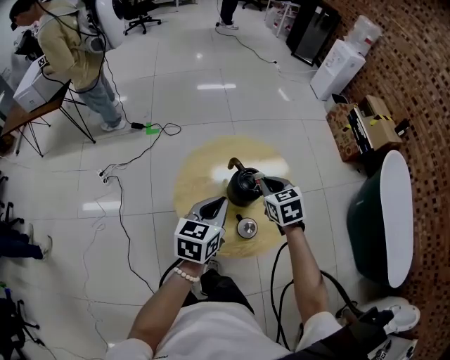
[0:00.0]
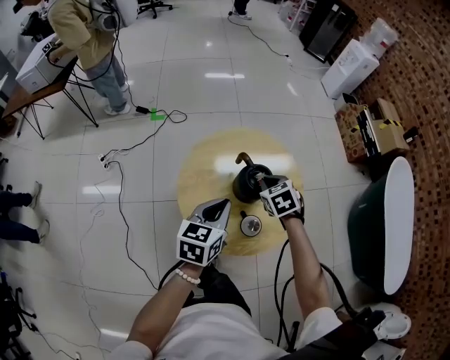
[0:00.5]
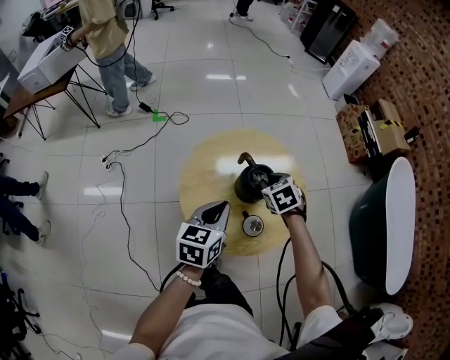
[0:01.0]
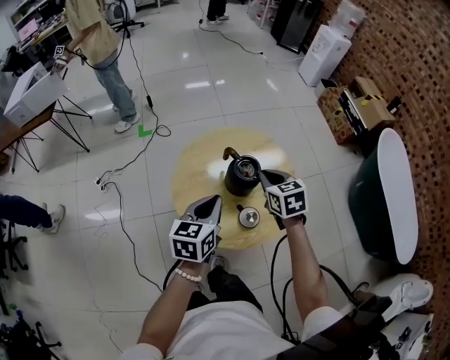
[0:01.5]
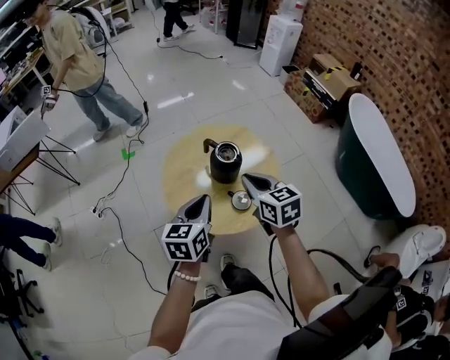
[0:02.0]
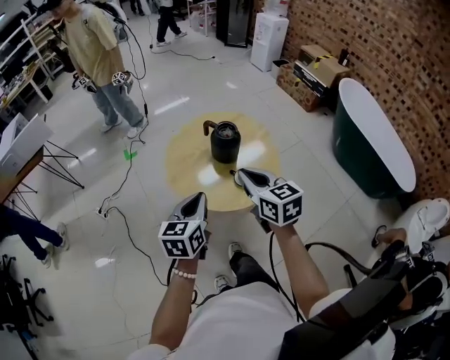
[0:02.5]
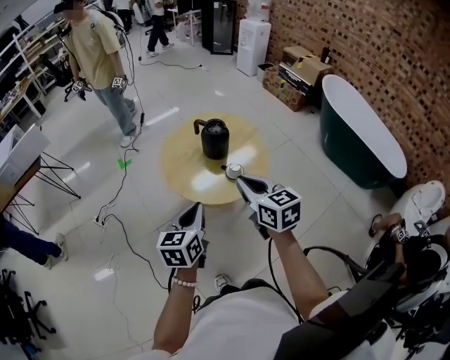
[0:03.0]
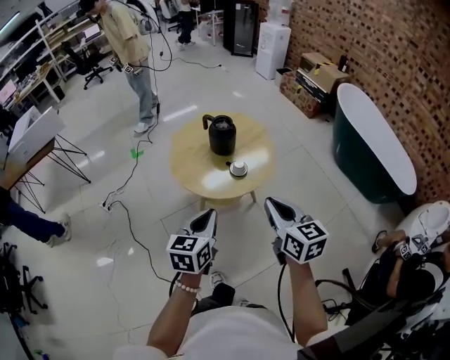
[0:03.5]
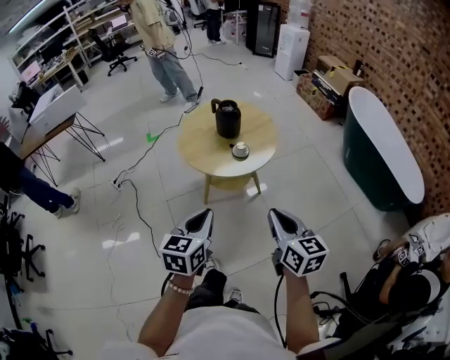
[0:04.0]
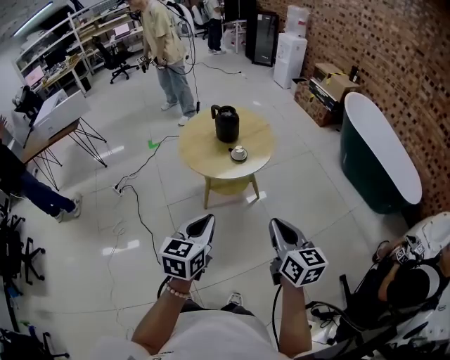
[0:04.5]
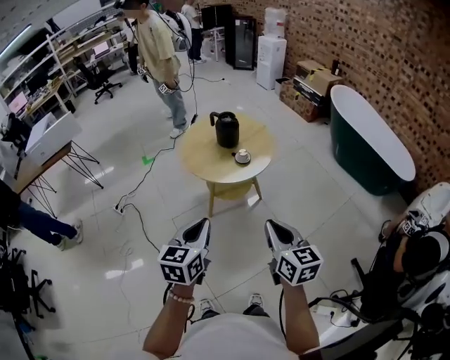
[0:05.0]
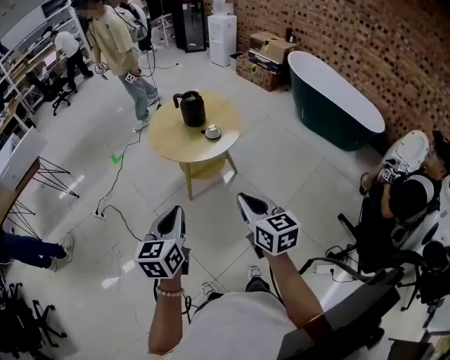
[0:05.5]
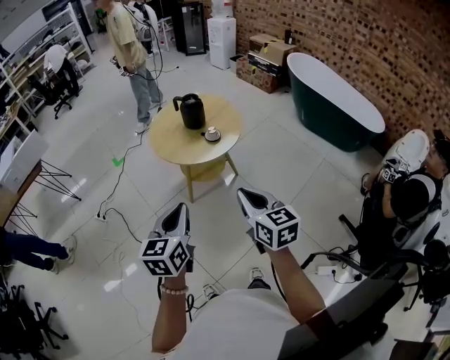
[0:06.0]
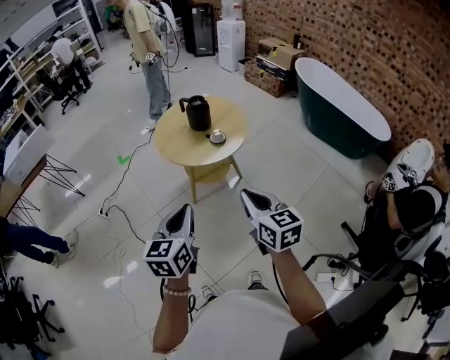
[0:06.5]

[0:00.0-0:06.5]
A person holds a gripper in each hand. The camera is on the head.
0:00.0 to 0:02.0: The right gripper moves backward and upward, approximately 15 cm, turns by roughly 20 degrees, and opens, then closes once more. The left gripper shifts approximately 10 cm backward.
0:02.0 to 0:04.5: The grippers both shift backward by approximately 40 cm. The right gripper turns by about 20 degrees.
0:04.5 to 0:06.5: Both grippers travel together to the left, about 10 cm.

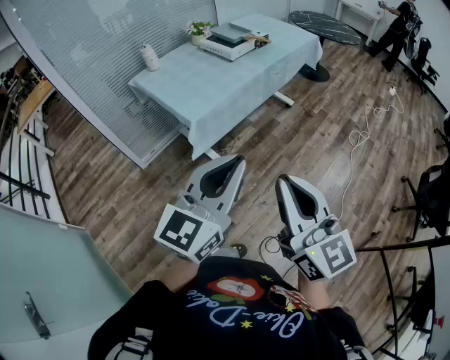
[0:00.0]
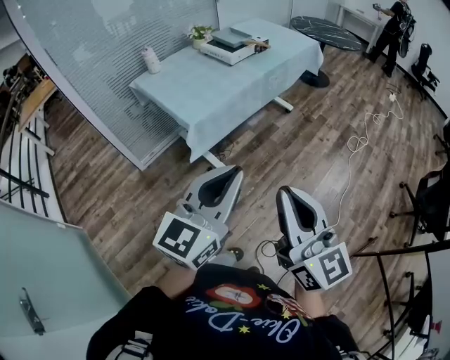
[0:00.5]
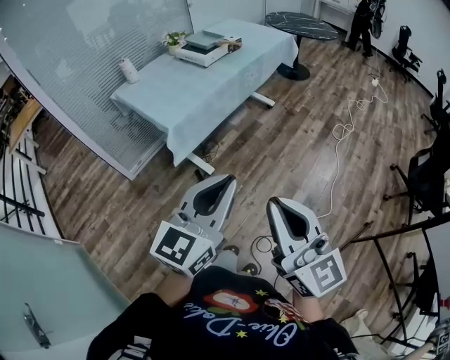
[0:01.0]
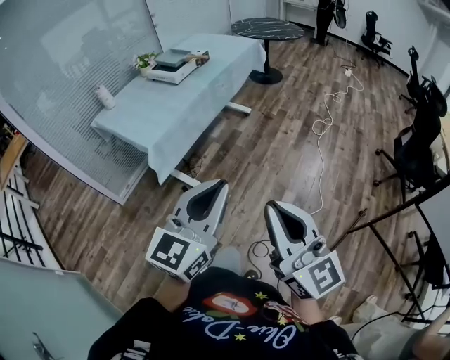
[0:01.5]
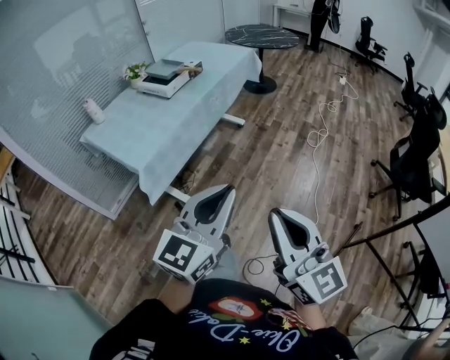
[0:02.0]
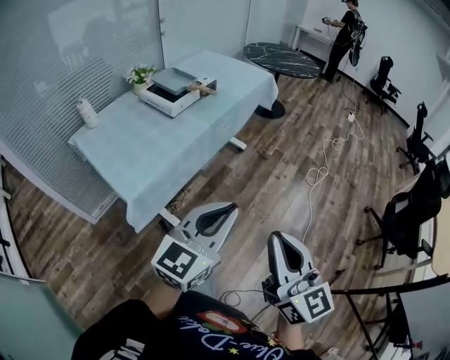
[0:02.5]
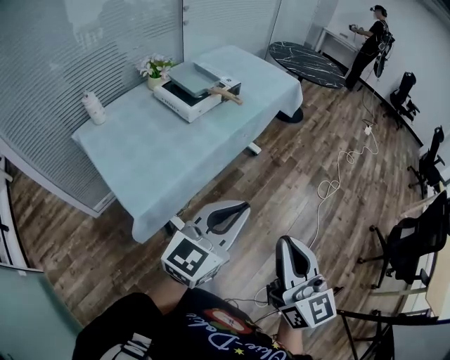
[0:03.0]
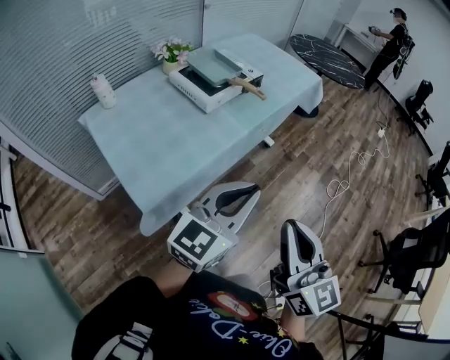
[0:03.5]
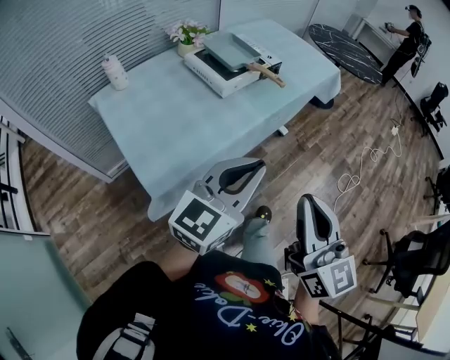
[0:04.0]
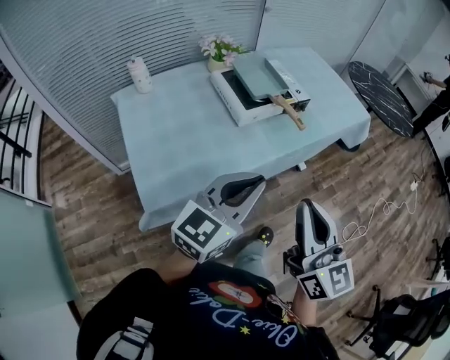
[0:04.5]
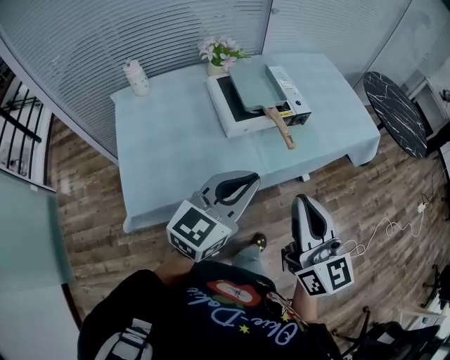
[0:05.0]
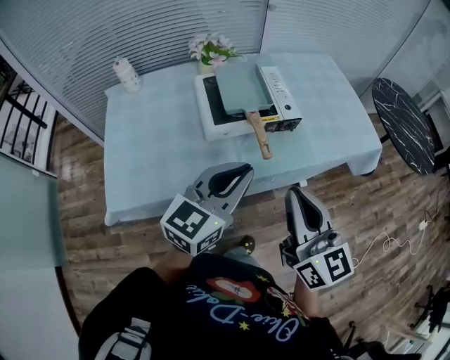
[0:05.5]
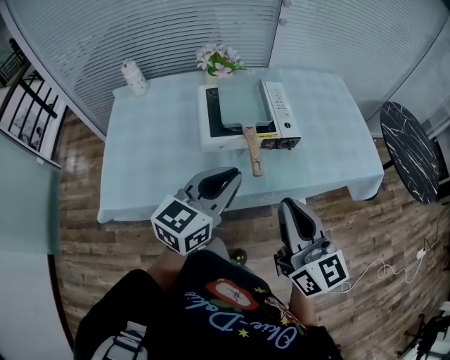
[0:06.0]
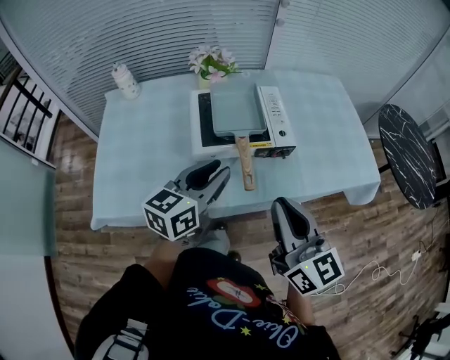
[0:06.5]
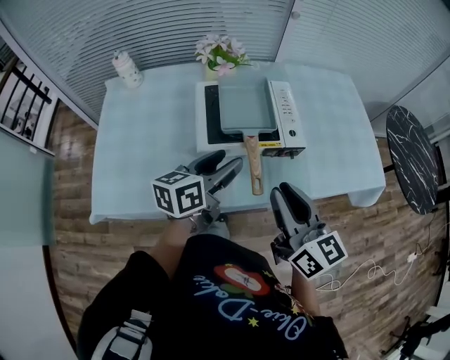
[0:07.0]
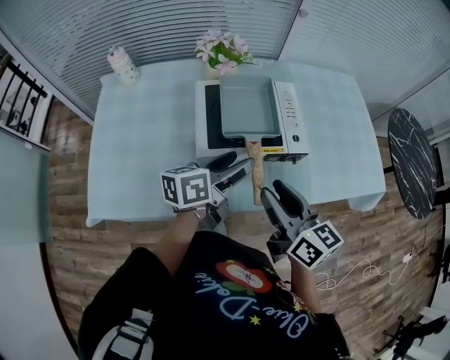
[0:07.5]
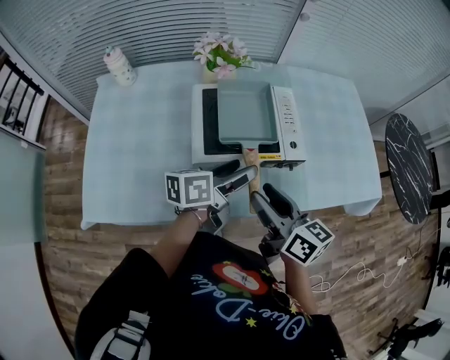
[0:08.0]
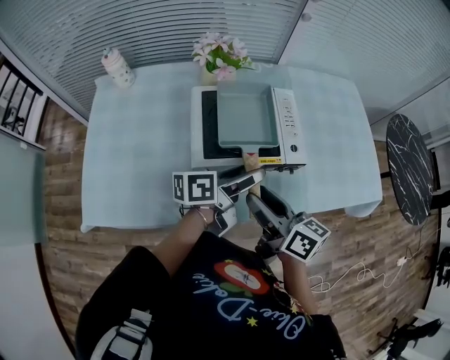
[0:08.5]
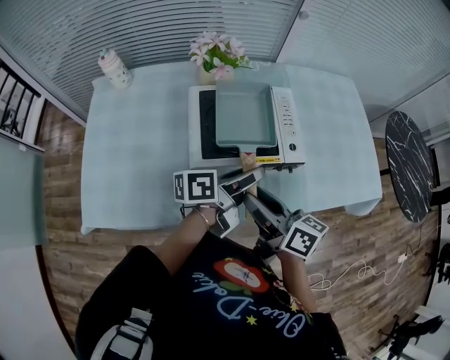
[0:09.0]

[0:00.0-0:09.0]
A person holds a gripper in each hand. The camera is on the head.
0:00.0 to 0:02.0: Both grippers move to the right, some 15 cm.
0:02.0 to 0:04.5: The pair of grippers is taken forward, approximately 50 cm. The left gripper changes its angle by approximately 20 degrees. Meanwhile the right gripper turns by approximately 20 degrees.
0:04.5 to 0:07.0: The right gripper changes place by approximately 30 cm, and swivels about 30 degrees, while the left gripper ends up roughly 30 cm from where it was, swivels approximately 40 degrees, and opens its fingers.
0:07.0 to 0:09.0: The left gripper moves to the right, roughly 5 cm, and rotates roughly 30 degrees. The right gripper moves downward, forward and to the left, approximately 10 cm, turns by about 30 degrees, and opens its fingers.

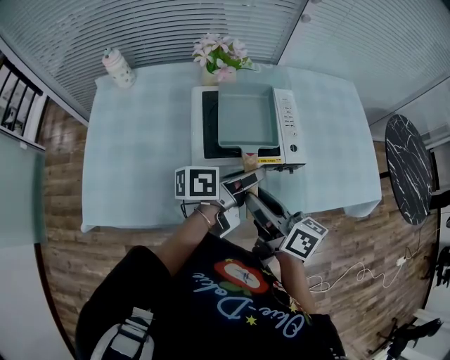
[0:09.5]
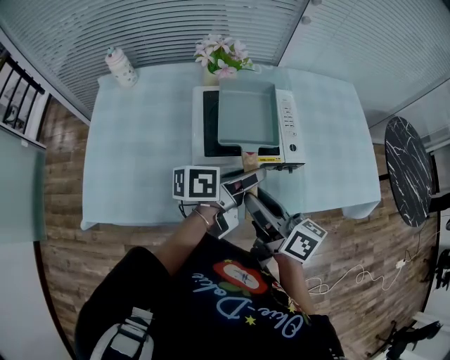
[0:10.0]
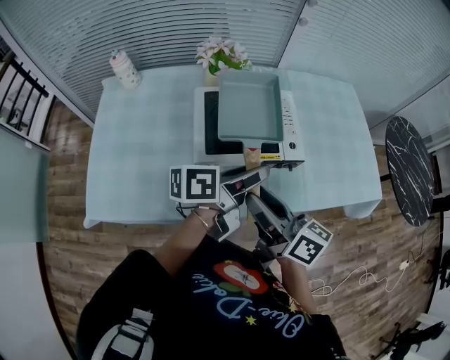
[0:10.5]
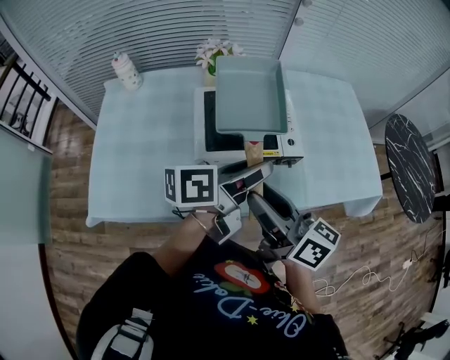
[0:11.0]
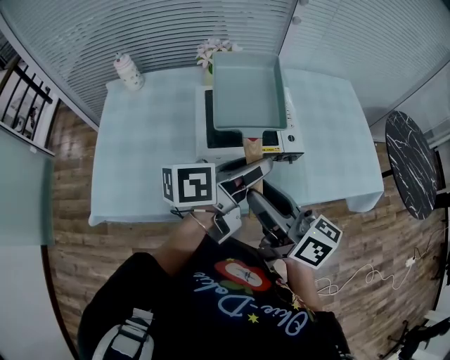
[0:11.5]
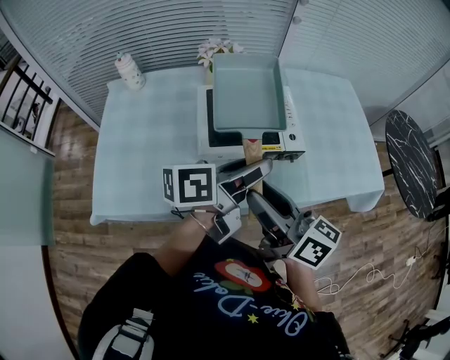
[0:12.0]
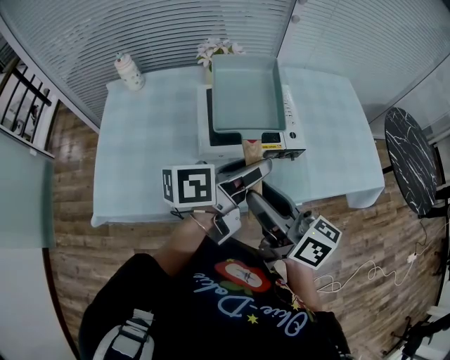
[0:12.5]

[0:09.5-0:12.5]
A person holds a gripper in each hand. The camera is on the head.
0:09.5 to 0:11.0: Both grippers travel together upward, roughly 10 cm.
0:11.0 to 0:12.5: The grippers make only small movements.

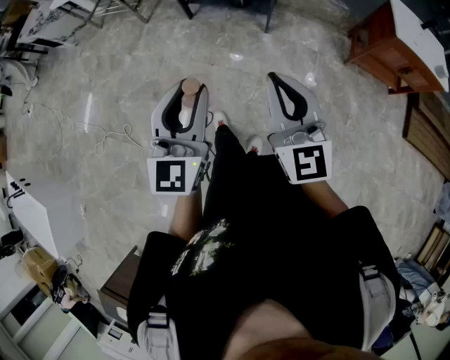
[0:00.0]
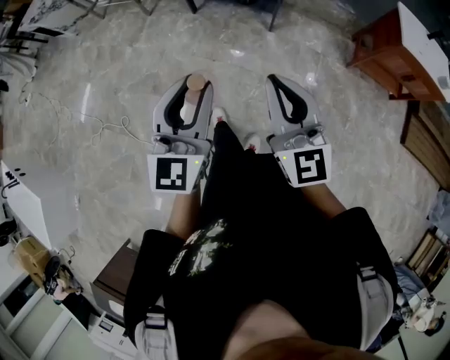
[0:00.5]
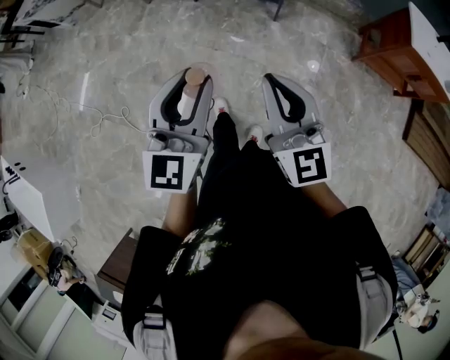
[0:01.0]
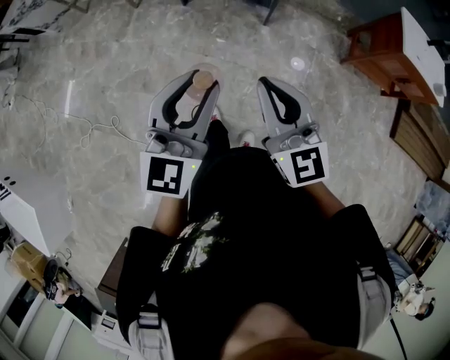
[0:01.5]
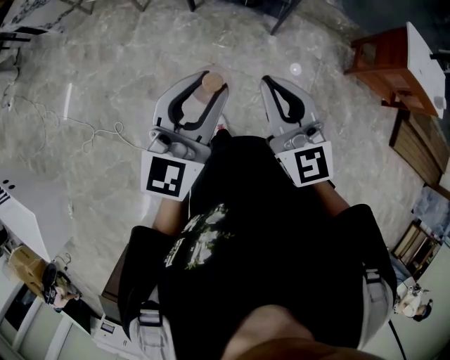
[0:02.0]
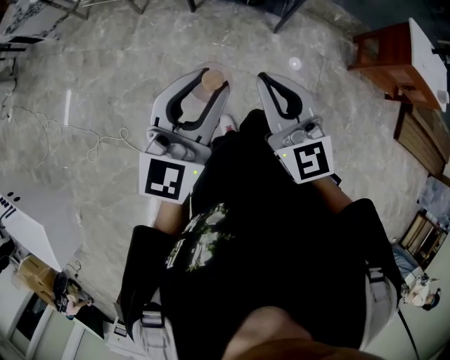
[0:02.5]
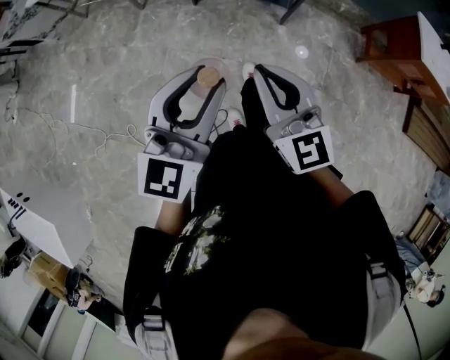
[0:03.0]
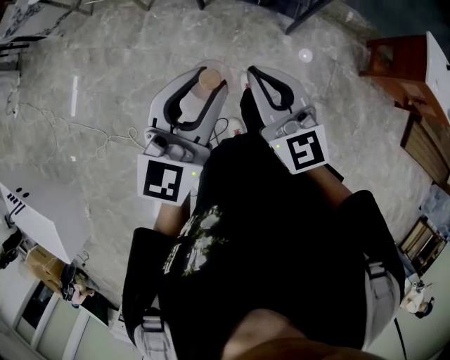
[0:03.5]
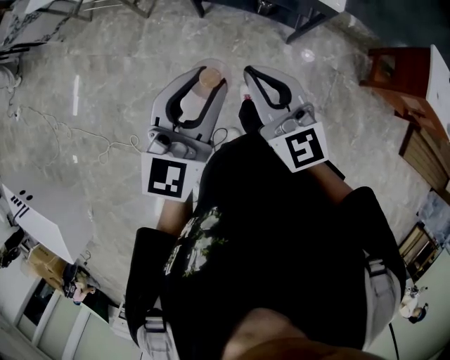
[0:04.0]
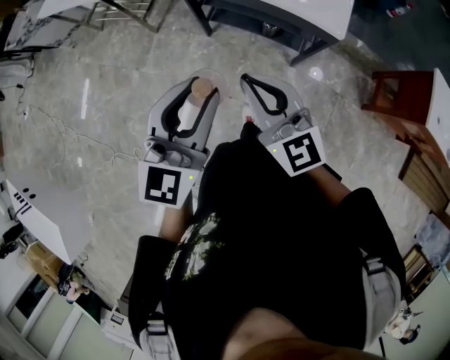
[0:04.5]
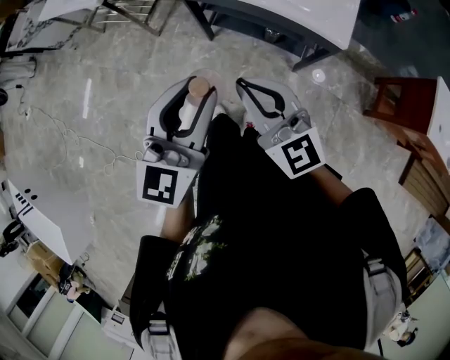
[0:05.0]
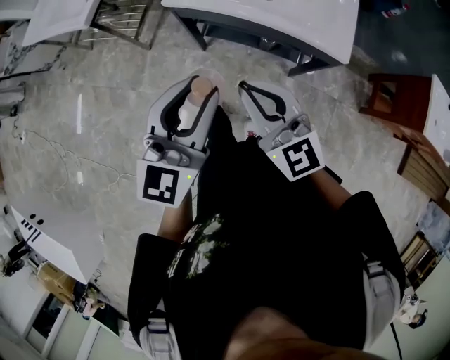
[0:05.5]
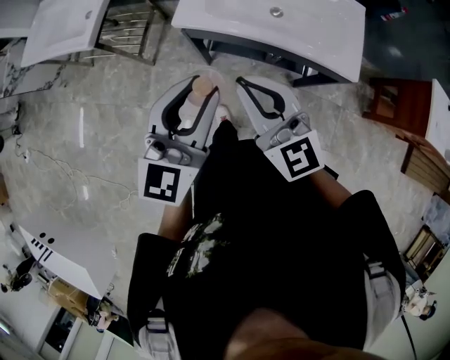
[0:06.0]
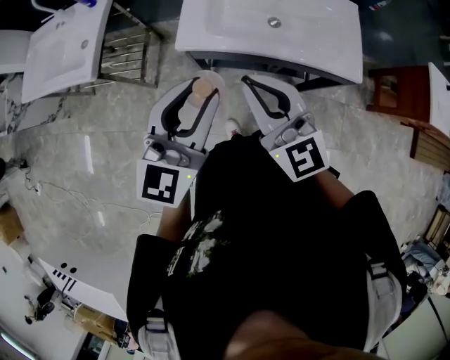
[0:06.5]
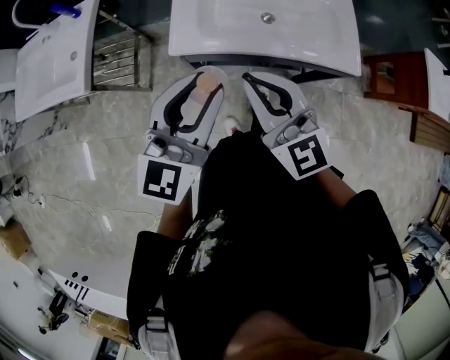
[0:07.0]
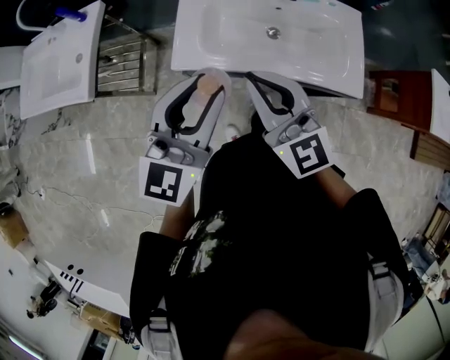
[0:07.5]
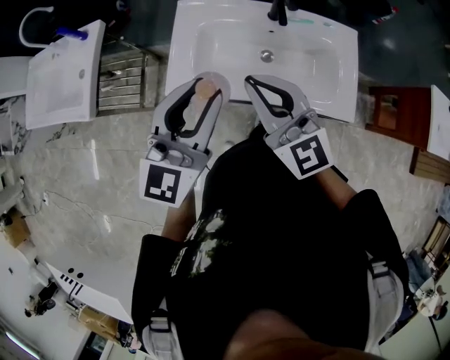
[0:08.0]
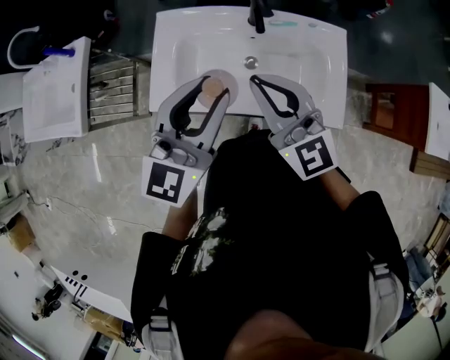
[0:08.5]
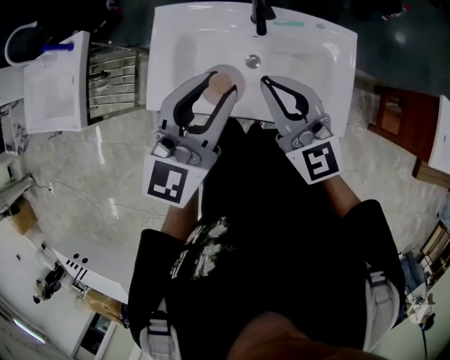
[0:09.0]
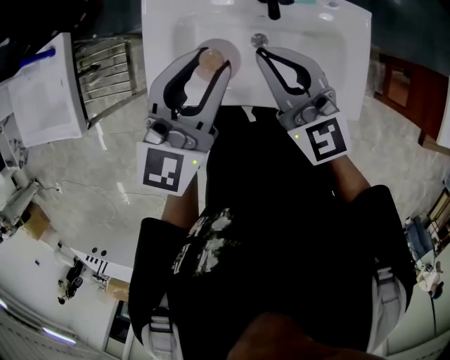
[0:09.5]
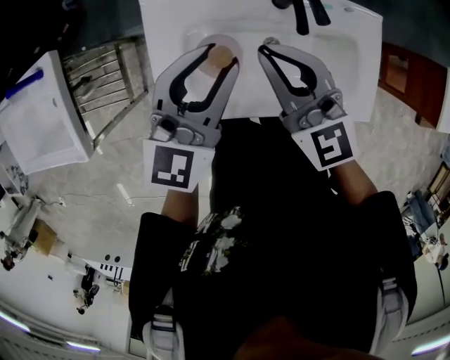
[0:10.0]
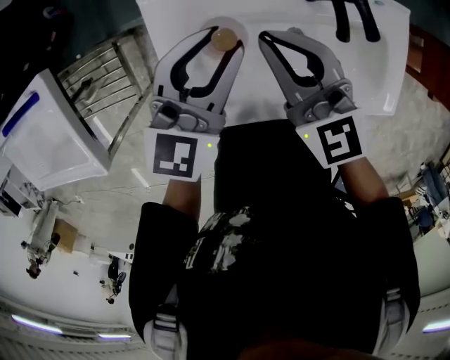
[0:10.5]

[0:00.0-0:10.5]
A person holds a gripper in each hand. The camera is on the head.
0:00.0 to 0:02.0: The grippers both shift forward and to the left by some 25 cm.
0:02.0 to 0:04.0: Both grippers move forward, roughly 30 cm.
0:04.0 to 0:06.5: Both grippers are carried forward, some 40 cm.
0:06.5 to 0:08.5: The grippers both shift forward and to the right by about 30 cm.
0:08.5 to 0:10.5: Both grippers move forward, downward and to the left, about 35 cm.
